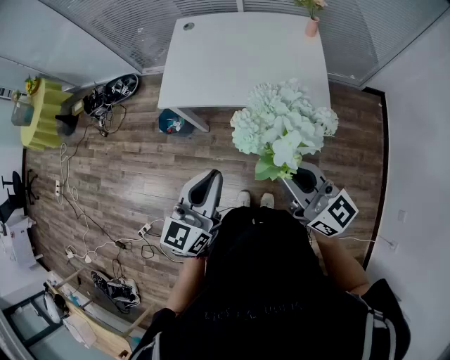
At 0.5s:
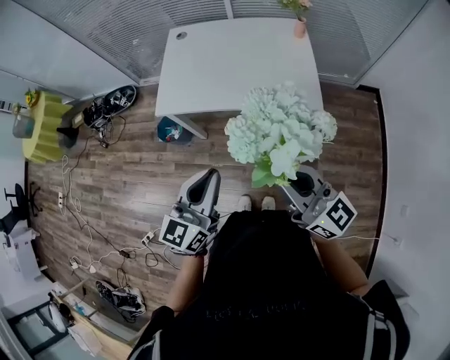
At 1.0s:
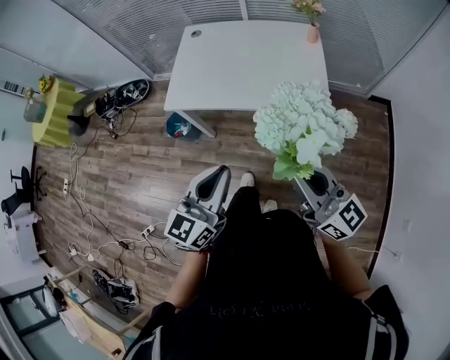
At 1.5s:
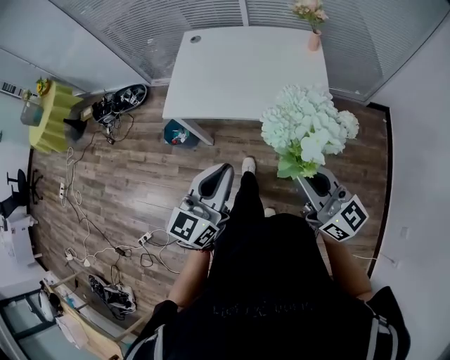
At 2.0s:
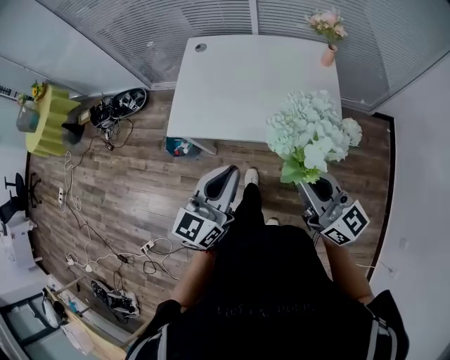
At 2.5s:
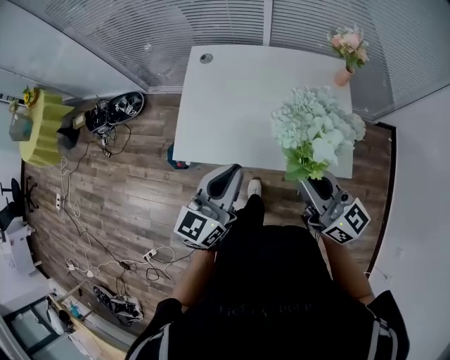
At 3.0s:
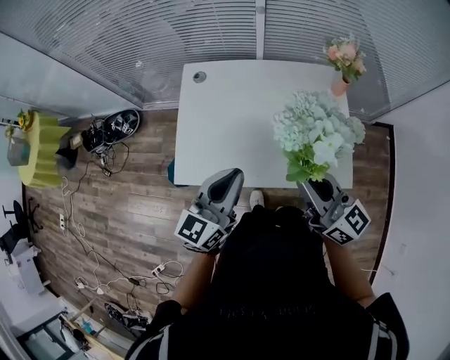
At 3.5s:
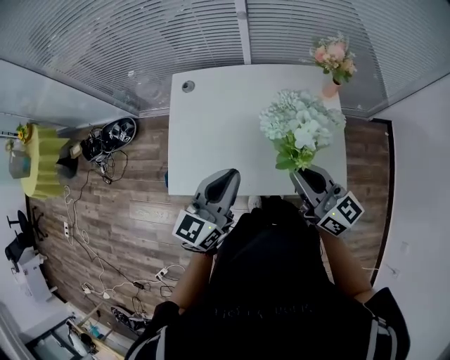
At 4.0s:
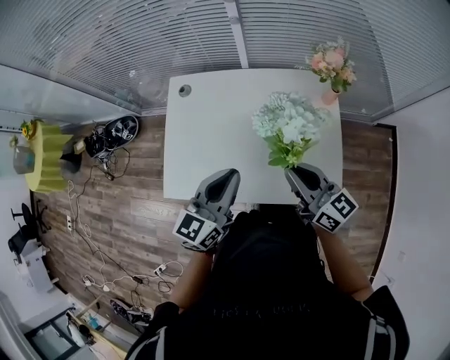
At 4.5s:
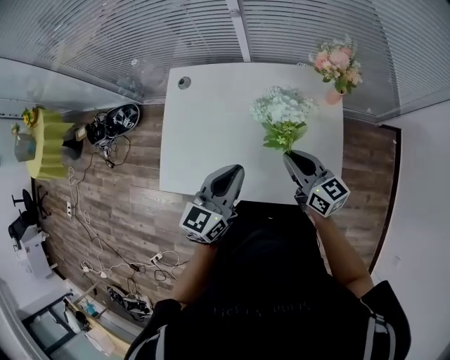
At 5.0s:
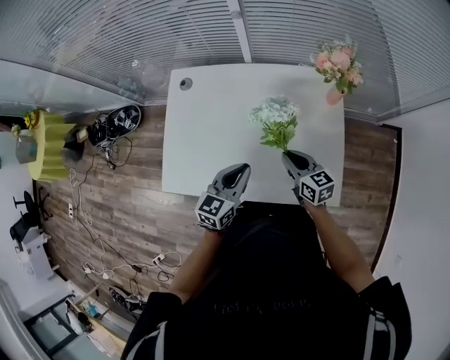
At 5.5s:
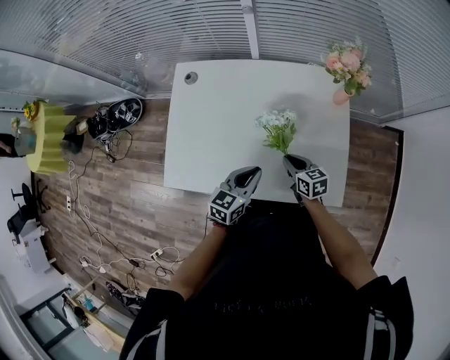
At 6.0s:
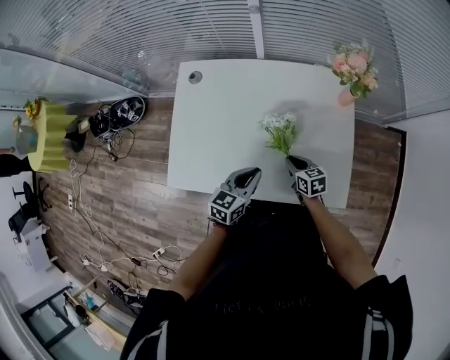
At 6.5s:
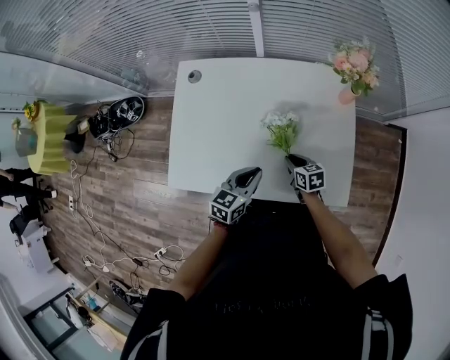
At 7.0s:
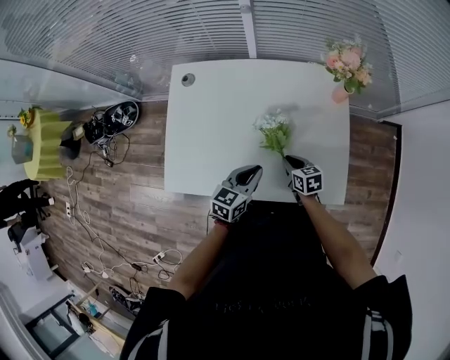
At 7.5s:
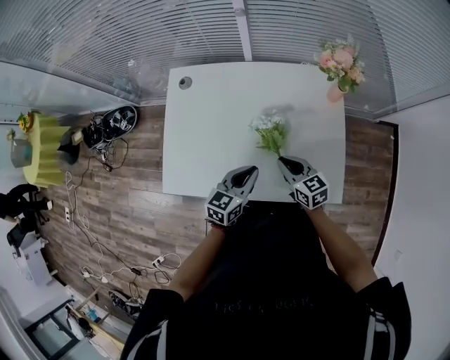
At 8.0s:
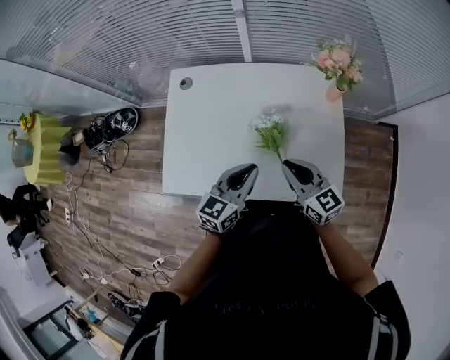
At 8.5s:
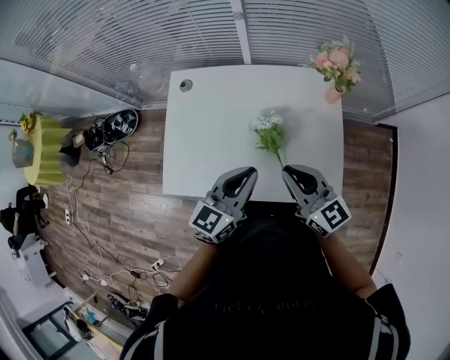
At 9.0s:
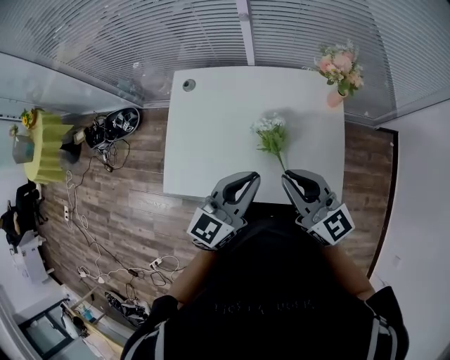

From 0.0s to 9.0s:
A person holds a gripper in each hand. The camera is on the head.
From 0.0s to 2.0s: The grippers both shift forward by approximately 15 cm.
From 2.0s to 4.5s: The right gripper heads forward and downward, covering roughly 30 cm. The left gripper is displaced forward by some 25 cm.
From 4.5s to 7.0s: The two grippers go some 20 cm downward. The right gripper tips its fingers downward by roughly 30 degrees. Meanwhile the left gripper changes its angle by approximately 20 degrees.
From 7.0s to 9.0s: The right gripper moves upward, some 35 cm, and tips its fingers upward by roughly 40 degrees, while the left gripper shifts some 20 cm upward, and swivels roughly 30 degrees.

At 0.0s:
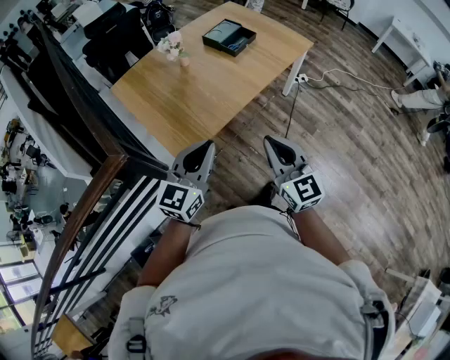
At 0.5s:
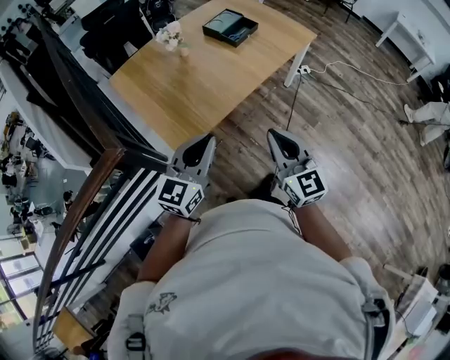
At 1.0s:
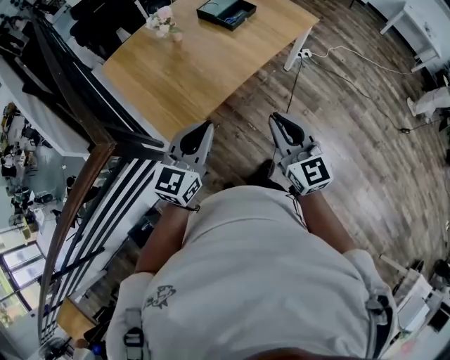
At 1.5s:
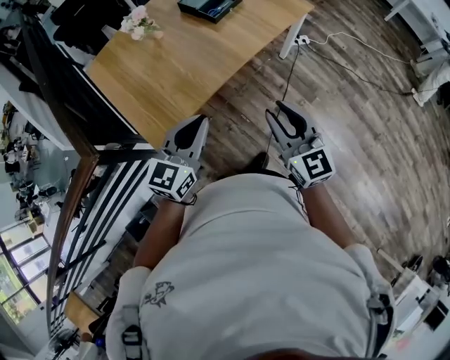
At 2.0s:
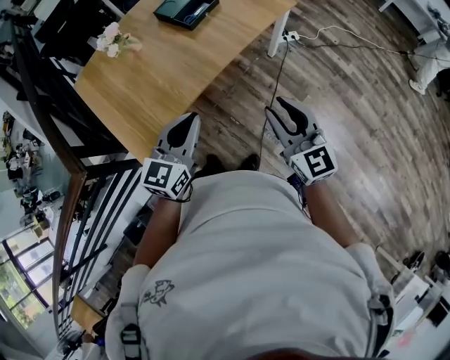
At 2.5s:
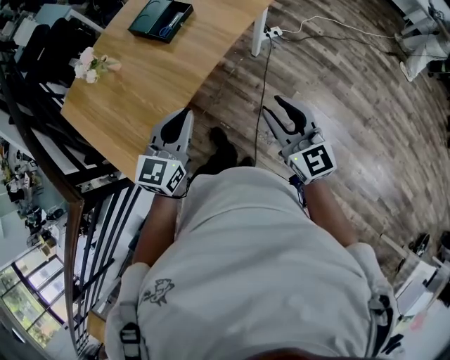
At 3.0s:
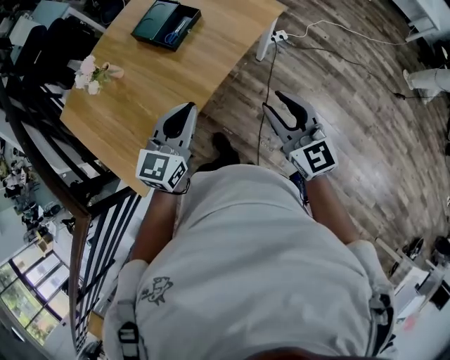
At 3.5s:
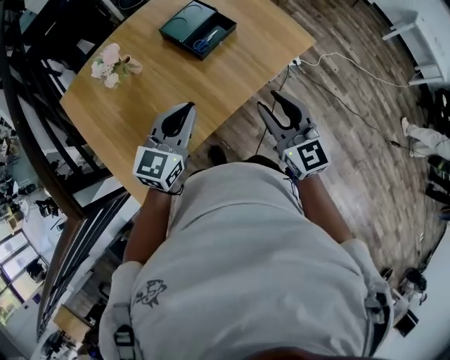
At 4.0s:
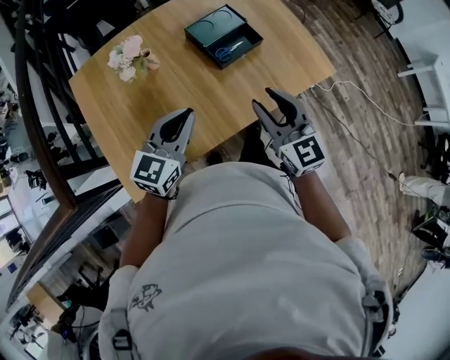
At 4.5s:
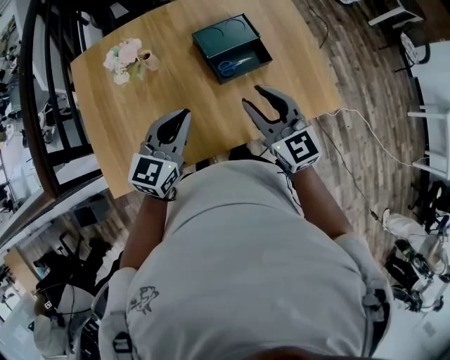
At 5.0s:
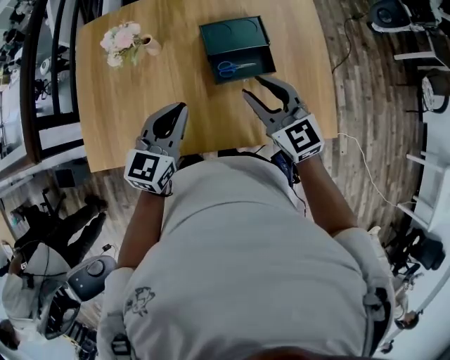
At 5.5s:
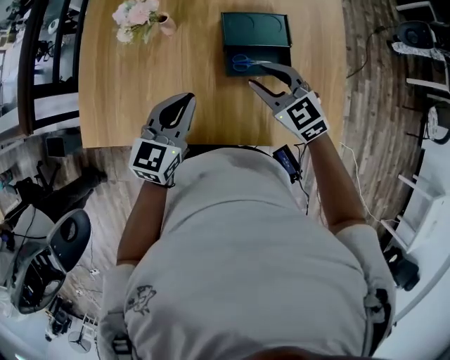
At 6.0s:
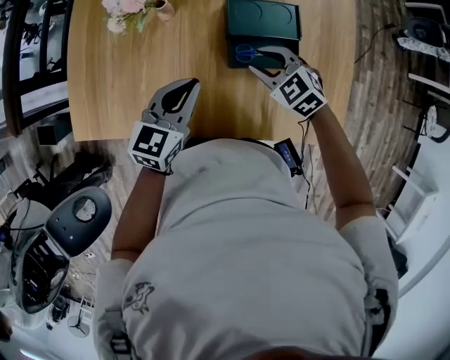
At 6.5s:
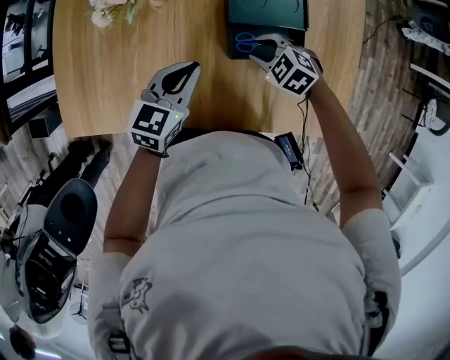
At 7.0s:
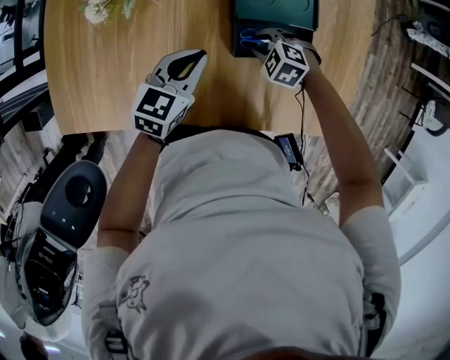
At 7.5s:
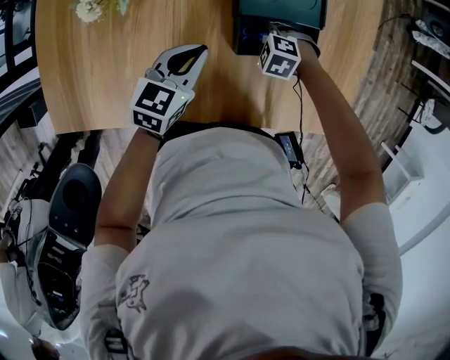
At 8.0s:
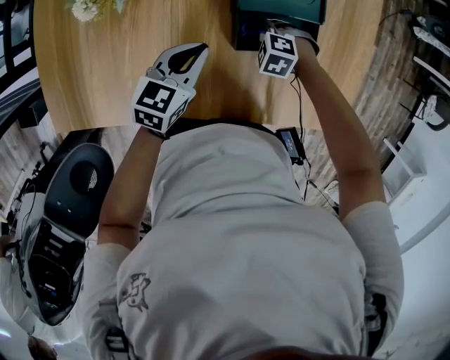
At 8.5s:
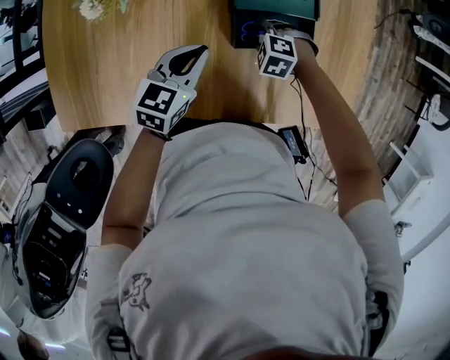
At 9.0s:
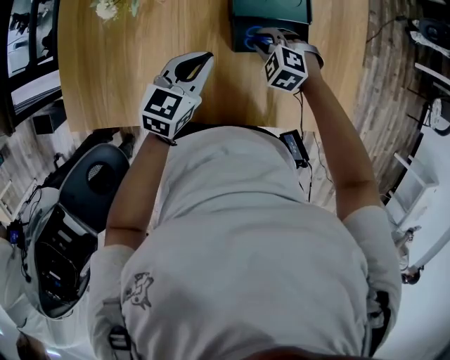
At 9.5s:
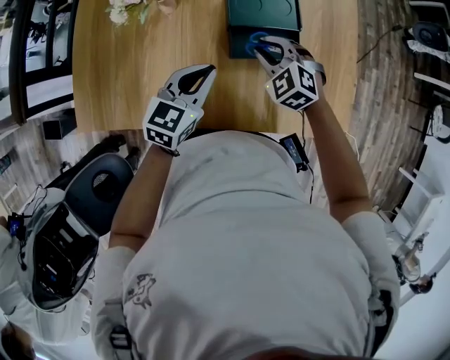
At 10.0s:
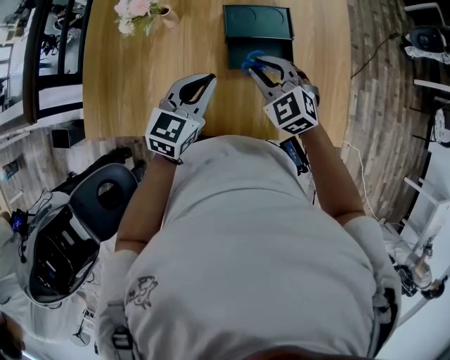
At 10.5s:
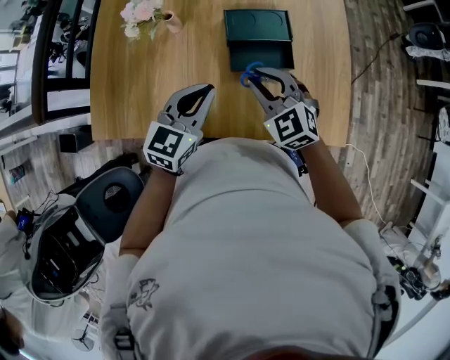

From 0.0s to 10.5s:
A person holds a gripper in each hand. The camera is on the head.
From 0.0s to 2.0s: The grippers both shift to the right and forward by approximately 25 cm. The right gripper opens its fingers.
From 2.0s to 4.0s: The two grippers go about 30 cm forward and to the left.
From 4.0s to 6.5s: The right gripper travels downward by approximately 25 cm, and tilts its fingers about 50 degrees downward; the left gripper shifts by about 20 cm, and swivels approximately 40 degrees.
From 6.5s to 8.5s: The right gripper shifts some 5 cm downward.
From 8.5s to 10.5s: The left gripper is displaced upward by approximately 15 cm, while the right gripper shifts about 30 cm upward, and angles its fingers upward, by roughly 40 degrees.

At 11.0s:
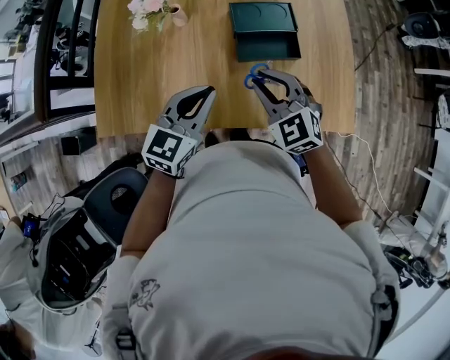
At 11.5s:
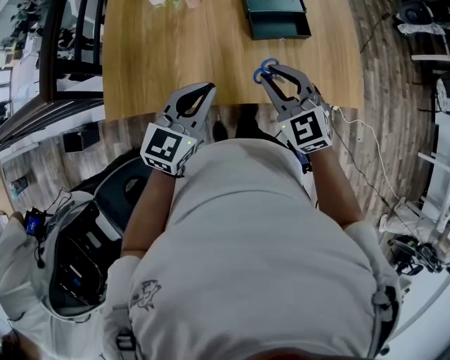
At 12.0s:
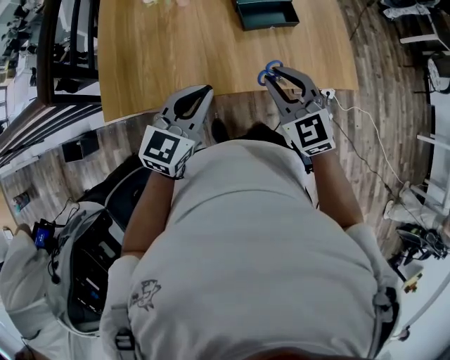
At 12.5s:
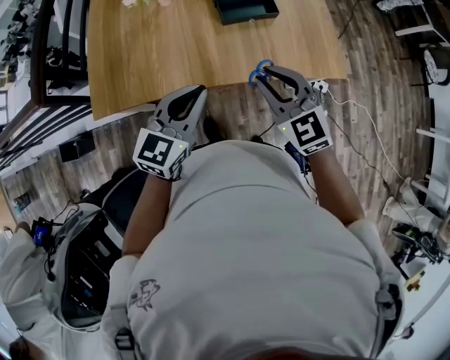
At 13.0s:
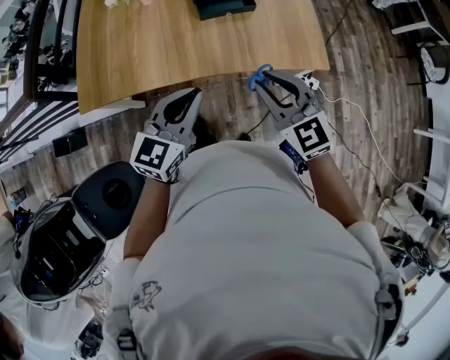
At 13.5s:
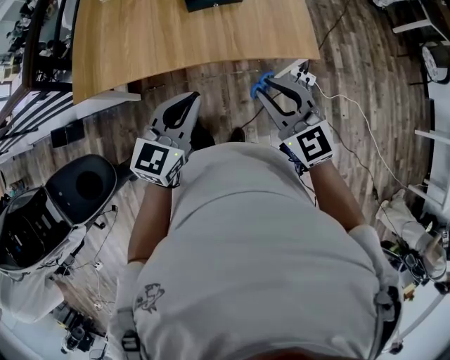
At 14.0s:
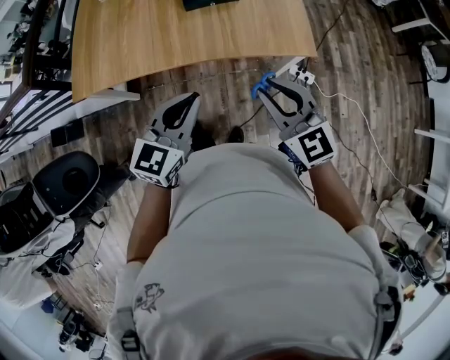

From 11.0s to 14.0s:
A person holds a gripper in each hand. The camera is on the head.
From 11.0s to 12.5s: The grippers both shift backward and to the left by roughly 15 cm.
From 12.5s to 14.0s: Both grippers travel together to the right and backward, about 25 cm.

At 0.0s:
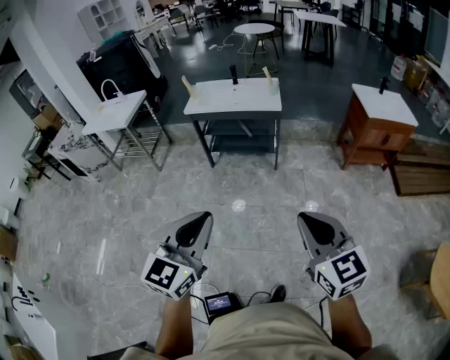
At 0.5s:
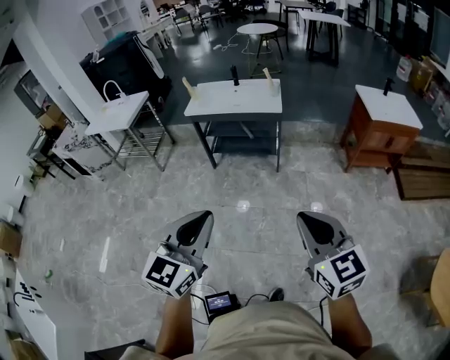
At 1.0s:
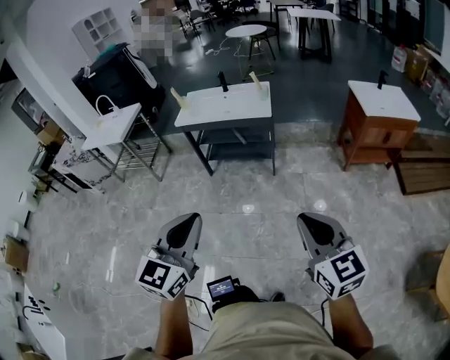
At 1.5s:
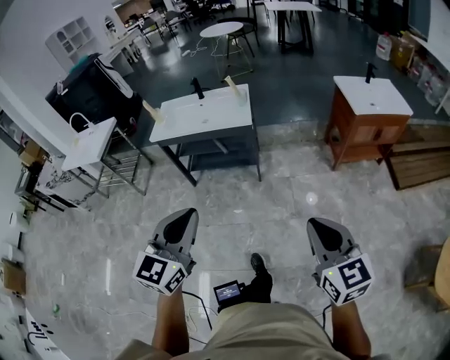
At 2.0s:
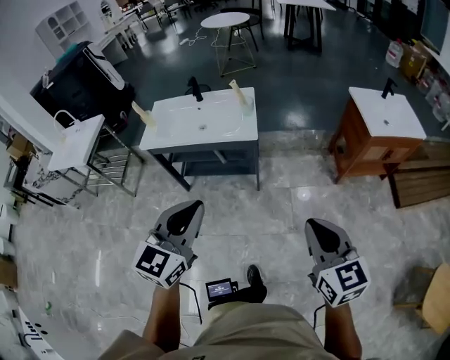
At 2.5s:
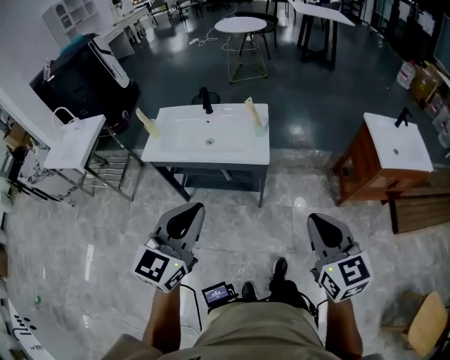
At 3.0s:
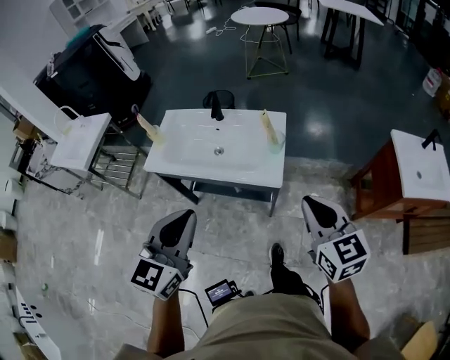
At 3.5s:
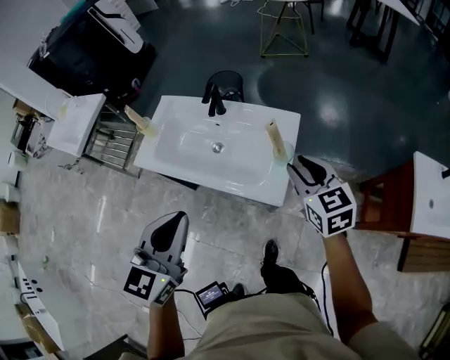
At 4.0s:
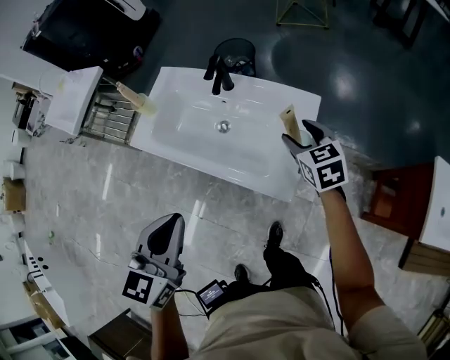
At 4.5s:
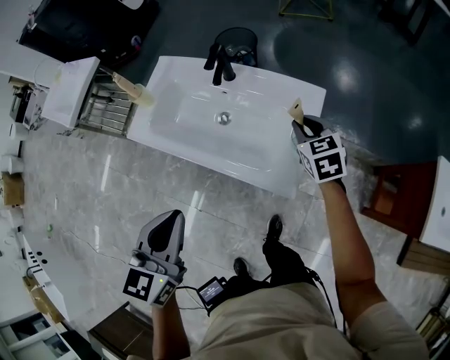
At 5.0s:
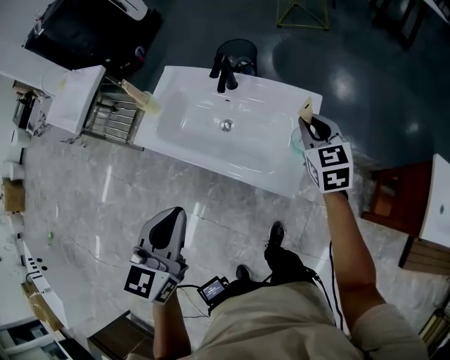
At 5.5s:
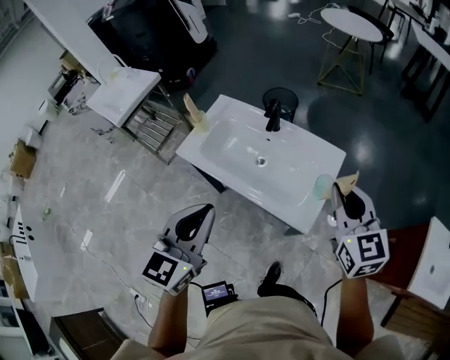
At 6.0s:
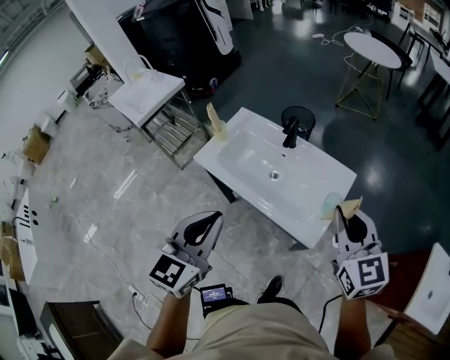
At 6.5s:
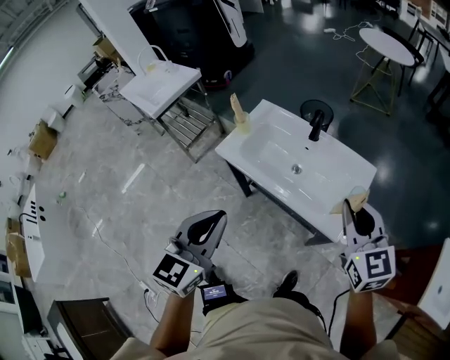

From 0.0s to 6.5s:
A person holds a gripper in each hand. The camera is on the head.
From 0.0s to 2.0s: Both grippers are carried forward, roughly 50 cm.
From 2.0s to 4.5s: The pair of grippers is taken roughly 60 cm. The left gripper swivels approximately 40 degrees. The right gripper swivels about 30 degrees, and opens and closes again.
From 4.5s to 6.5s: The left gripper heads to the left, upward and backward, covering about 20 cm. Meanwhile the right gripper moves upward, backward and to the left, approximately 35 cm, and turns by some 30 degrees.
